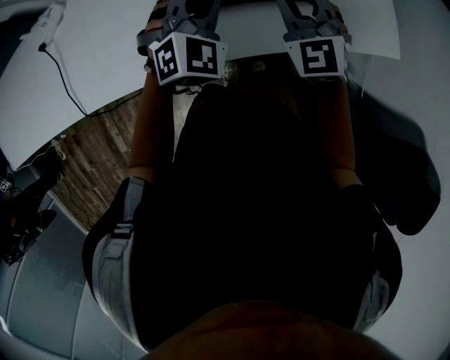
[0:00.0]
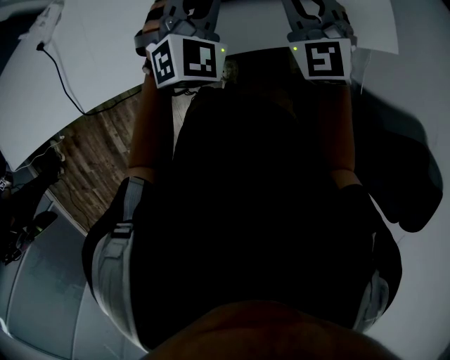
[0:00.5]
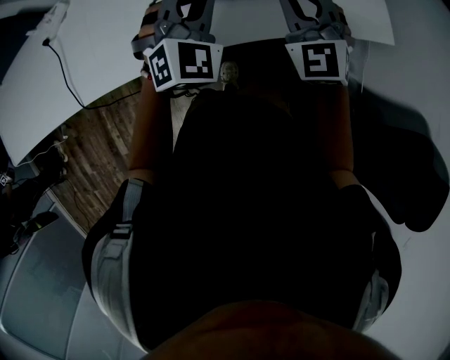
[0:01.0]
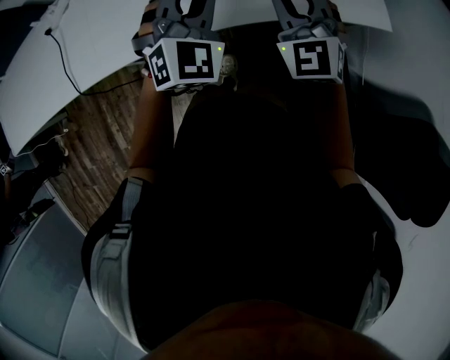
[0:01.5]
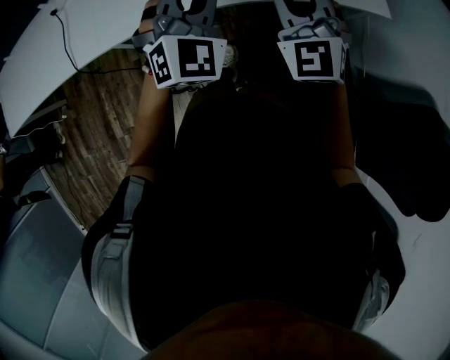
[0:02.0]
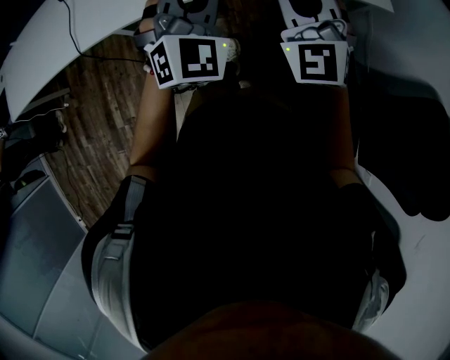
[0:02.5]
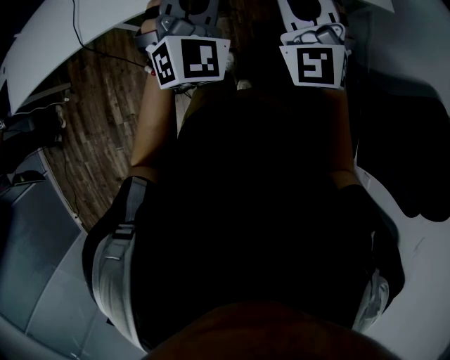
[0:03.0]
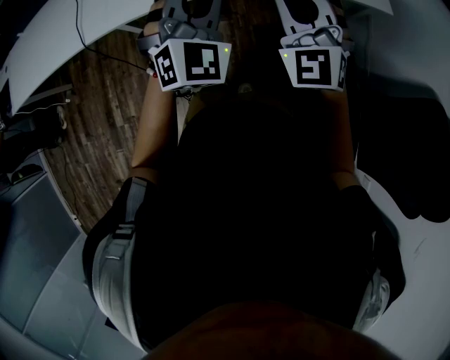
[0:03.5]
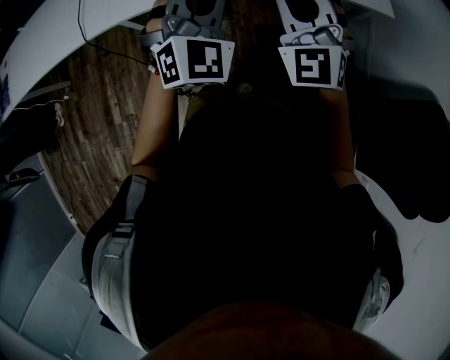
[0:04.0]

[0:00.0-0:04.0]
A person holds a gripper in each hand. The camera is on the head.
0:00.0 to 0:02.0: The grippers both shift backward by about 25 cm.
0:02.0 to 0:04.0: Both grippers move backward, some 10 cm.

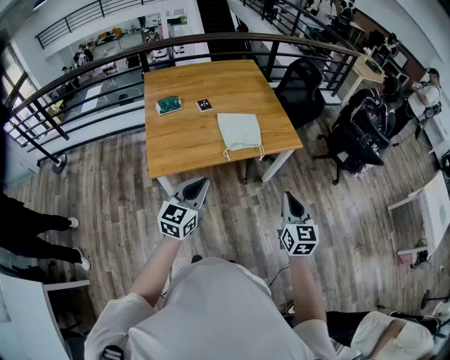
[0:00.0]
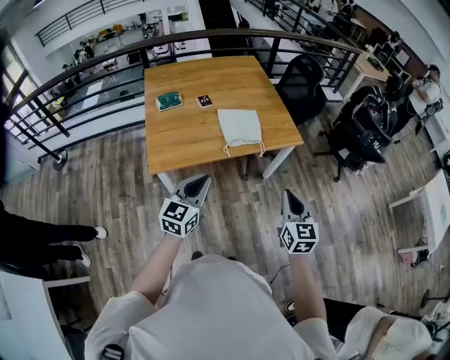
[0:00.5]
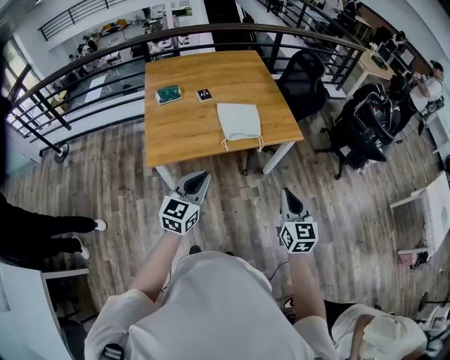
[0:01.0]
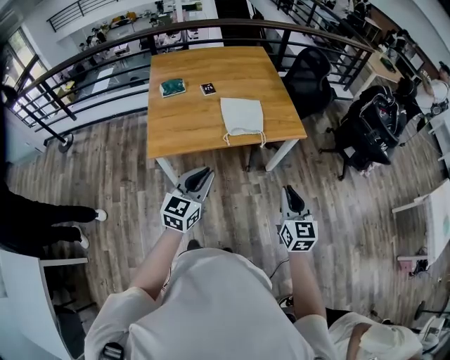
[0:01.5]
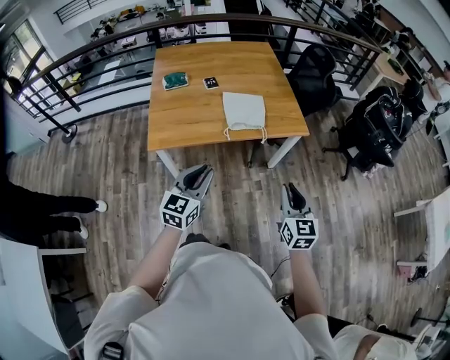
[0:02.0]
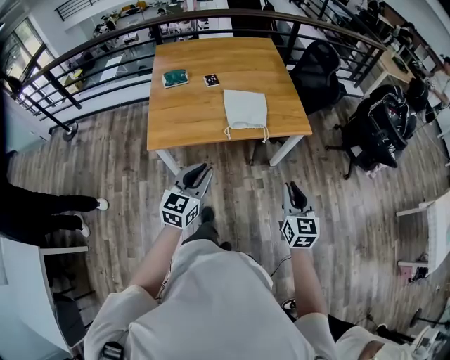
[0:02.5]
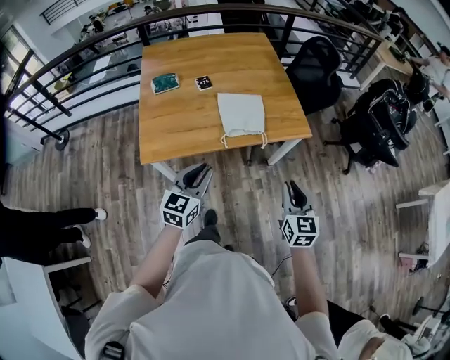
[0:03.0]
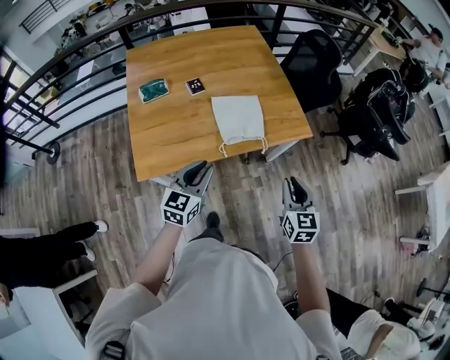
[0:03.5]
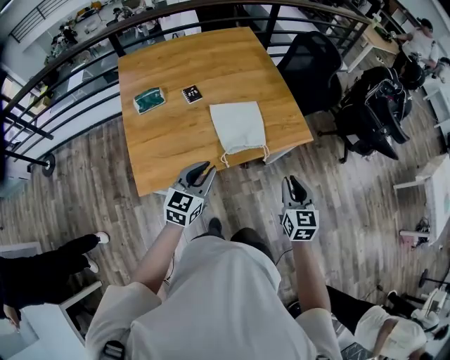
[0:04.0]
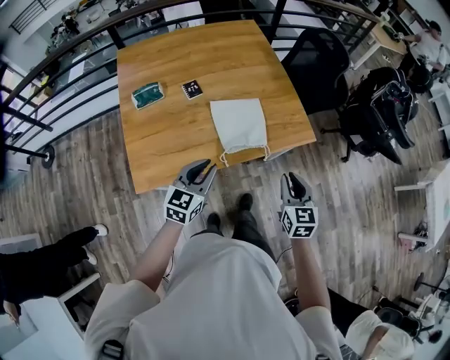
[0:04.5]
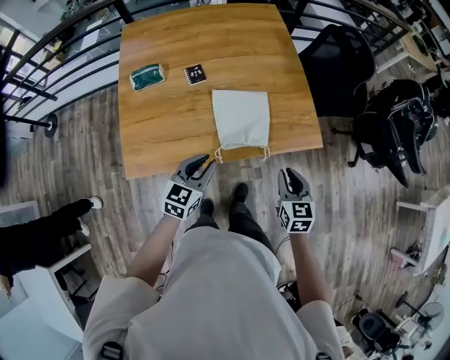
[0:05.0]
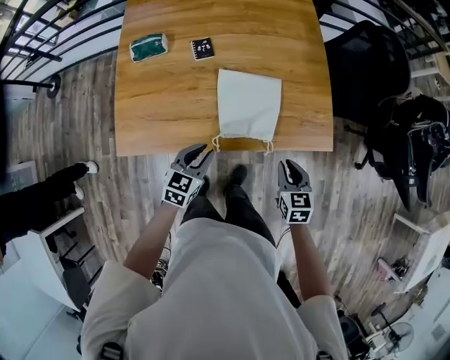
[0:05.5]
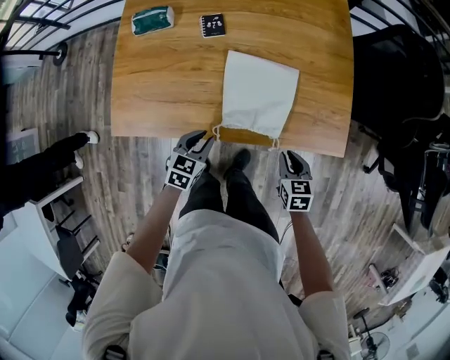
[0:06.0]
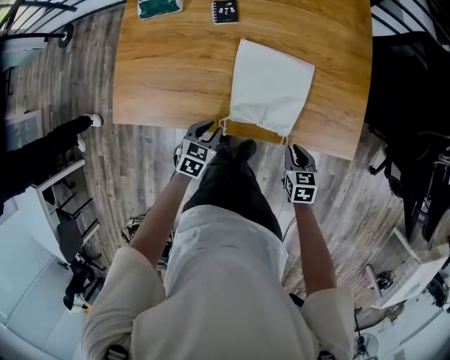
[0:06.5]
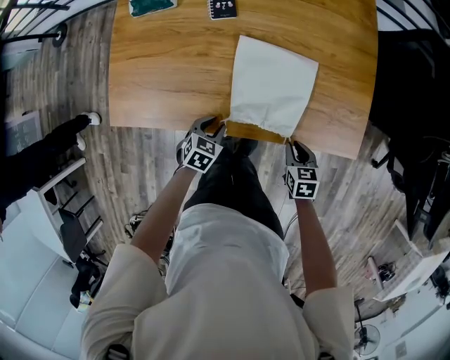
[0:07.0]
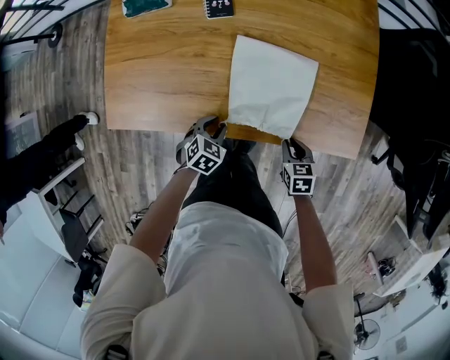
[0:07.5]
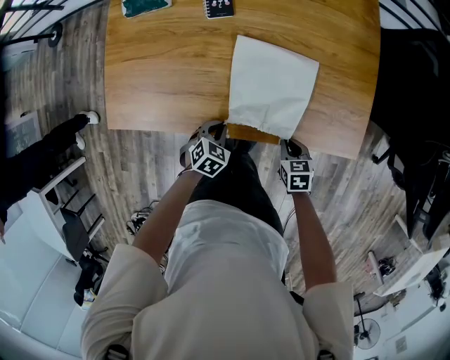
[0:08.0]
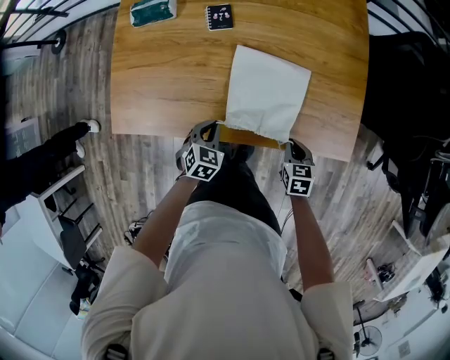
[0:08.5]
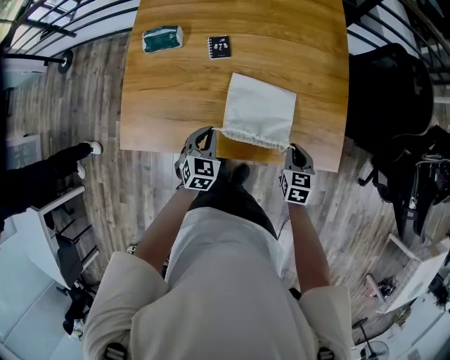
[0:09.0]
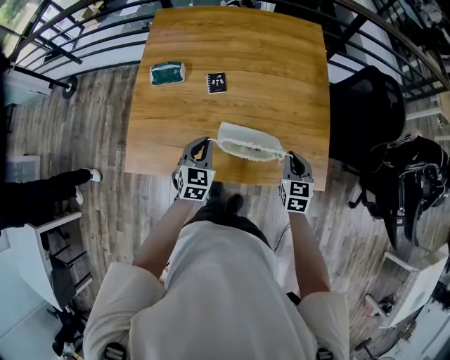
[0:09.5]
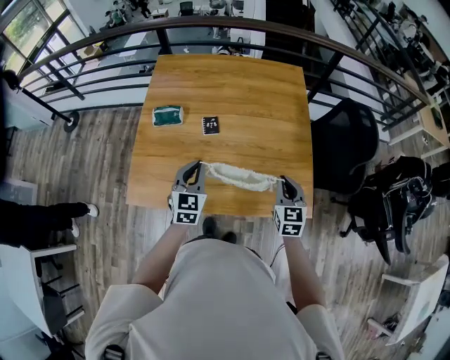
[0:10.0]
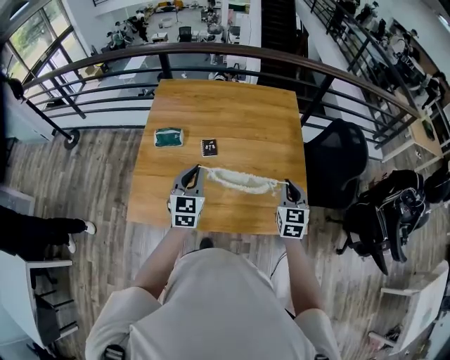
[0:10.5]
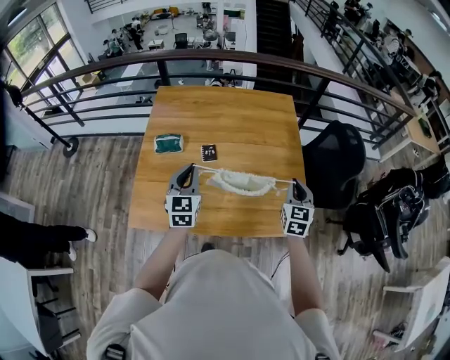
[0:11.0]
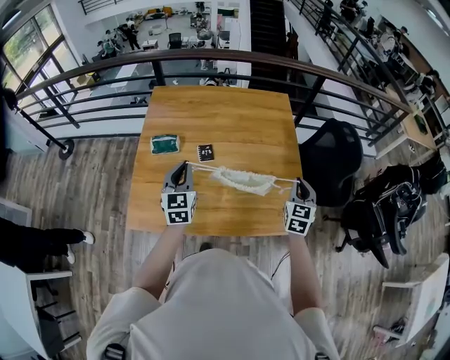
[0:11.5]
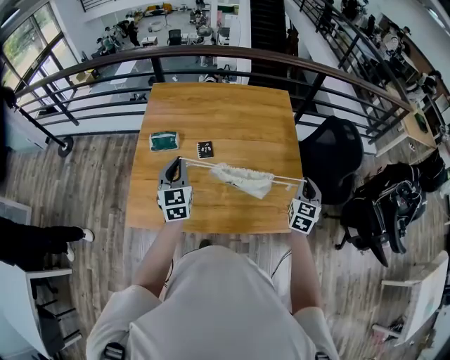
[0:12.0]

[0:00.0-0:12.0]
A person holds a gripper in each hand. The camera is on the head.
0:00.0 to 0:02.0: Both grippers travel together to the right, some 5 cm.
0:02.0 to 0:04.0: Both grippers travel together forward, roughly 25 cm.
0:04.0 to 0:06.0: Both grippers travel together downward, roughly 25 cm. The right gripper turns by about 40 degrees; the left gripper swivels roughly 30 degrees.
0:06.0 to 0:08.0: Both grippers move downward, some 10 cm. The left gripper turns by approximately 20 degrees.
0:08.0 to 0:10.0: Both grippers move upward, approximately 35 cm. The left gripper tips its fingers upward by roughly 40 degrees. Meanwhile the right gripper tilts its fingers about 40 degrees upward.
0:10.0 to 0:12.0: The right gripper is displaced to the right and upward by some 10 cm, and changes its angle by about 20 degrees. Meanwhile the left gripper heads to the left and upward, covering approximately 10 cm.

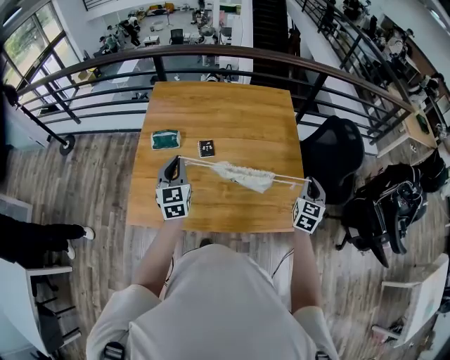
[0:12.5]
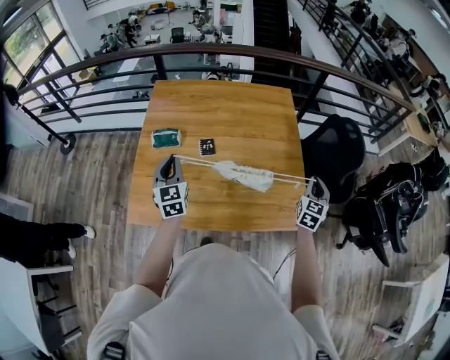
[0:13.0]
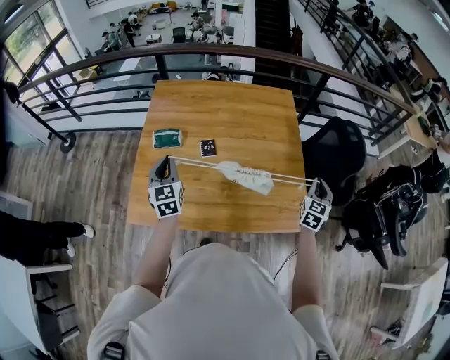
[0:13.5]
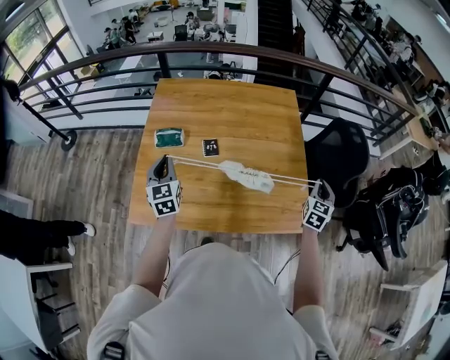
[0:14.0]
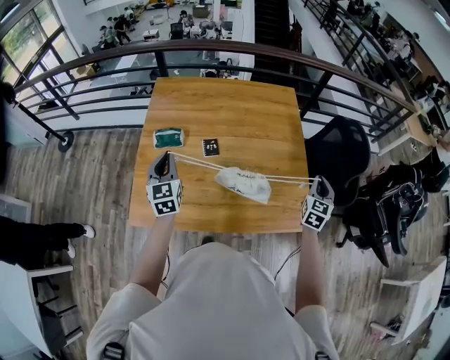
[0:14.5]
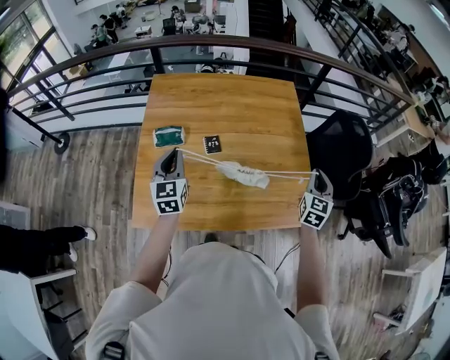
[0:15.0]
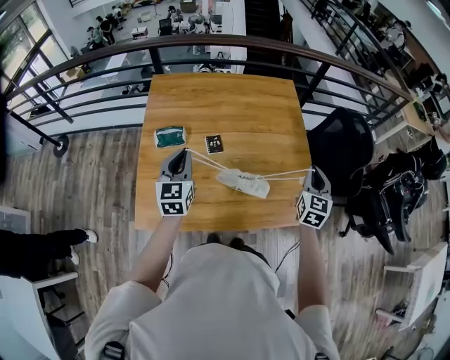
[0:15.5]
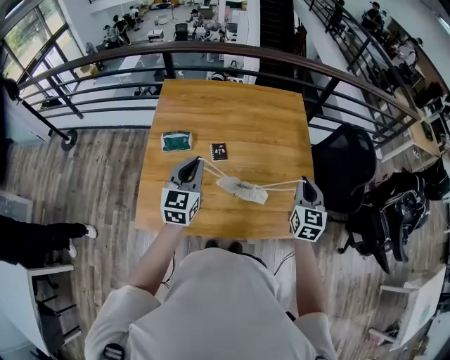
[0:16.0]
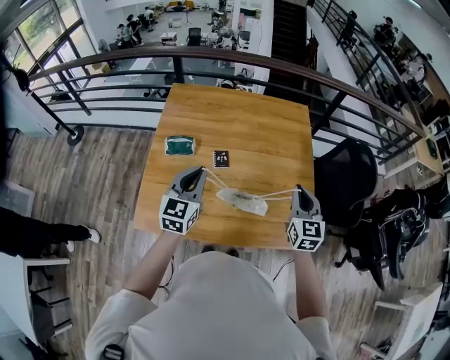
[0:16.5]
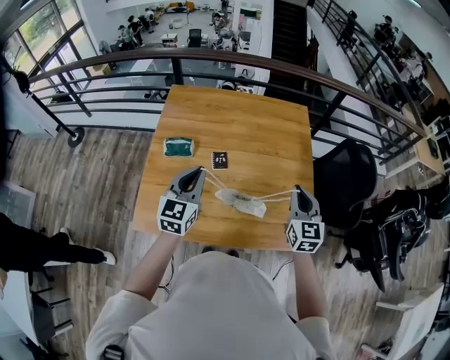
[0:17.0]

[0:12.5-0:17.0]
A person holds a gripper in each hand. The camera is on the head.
0:12.5 to 0:14.5: The left gripper heads to the left, covering roughly 5 cm.
0:14.5 to 0:17.0: The right gripper travels to the left and upward by some 15 cm, and rotates roughly 30 degrees. The left gripper heads to the right, covering some 10 cm, and rotates some 20 degrees.

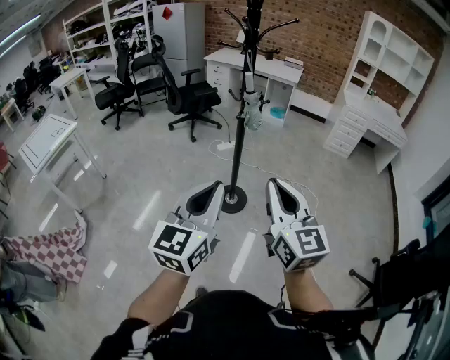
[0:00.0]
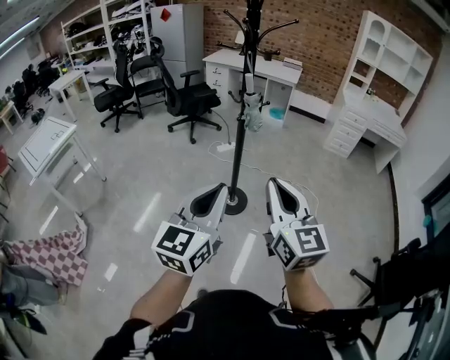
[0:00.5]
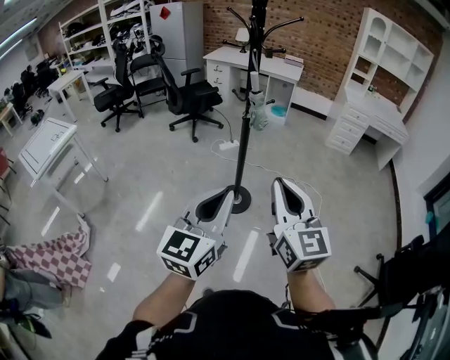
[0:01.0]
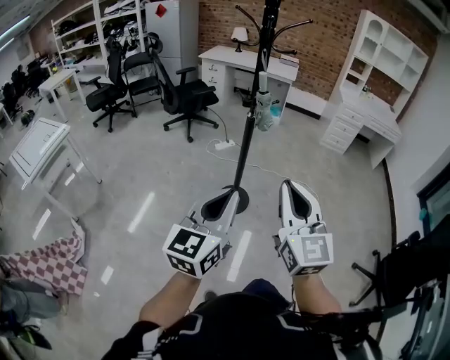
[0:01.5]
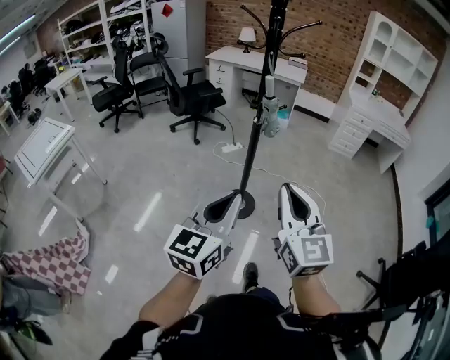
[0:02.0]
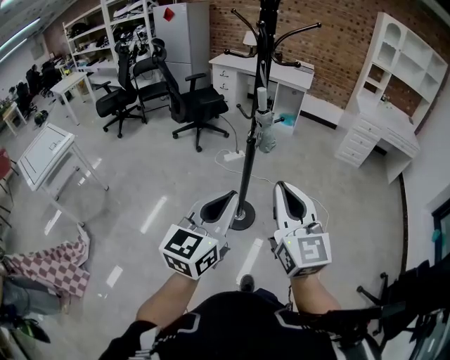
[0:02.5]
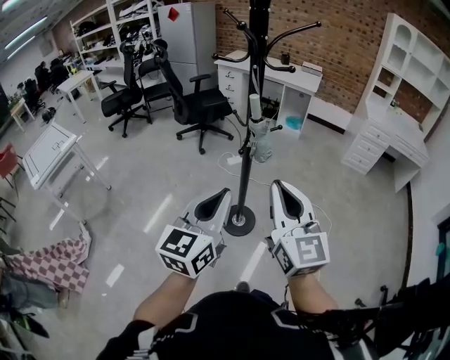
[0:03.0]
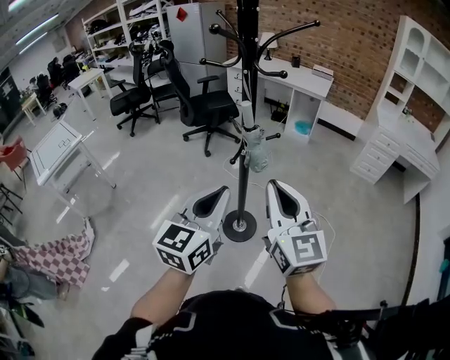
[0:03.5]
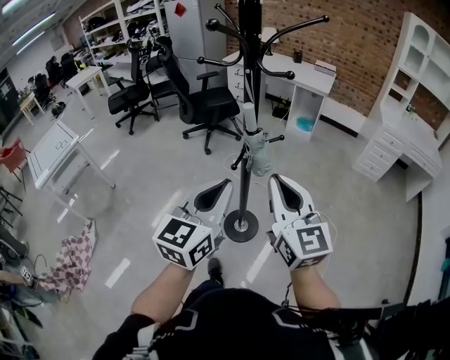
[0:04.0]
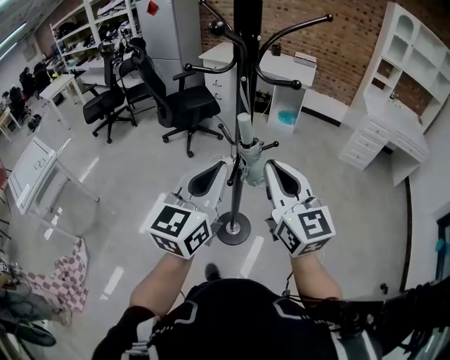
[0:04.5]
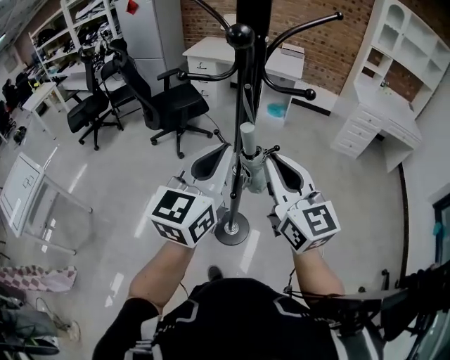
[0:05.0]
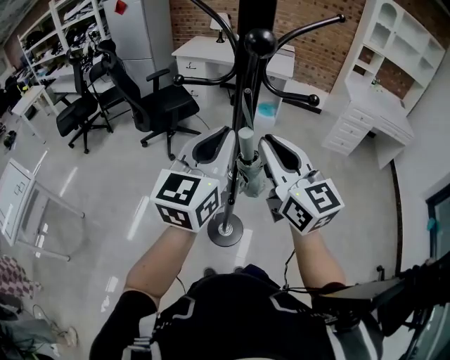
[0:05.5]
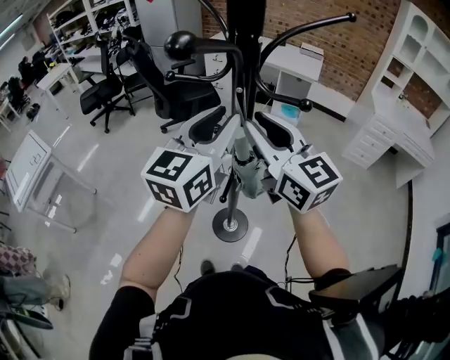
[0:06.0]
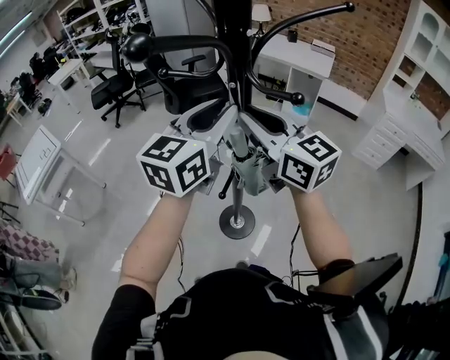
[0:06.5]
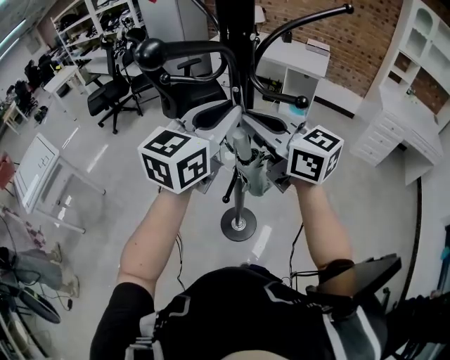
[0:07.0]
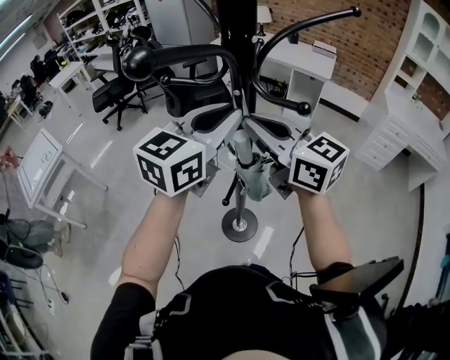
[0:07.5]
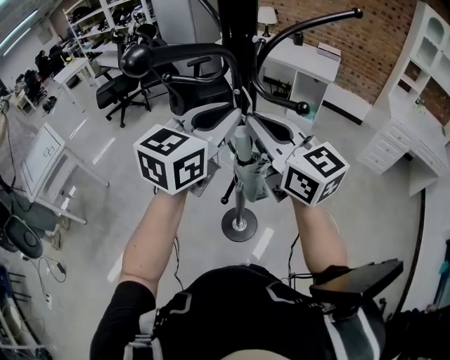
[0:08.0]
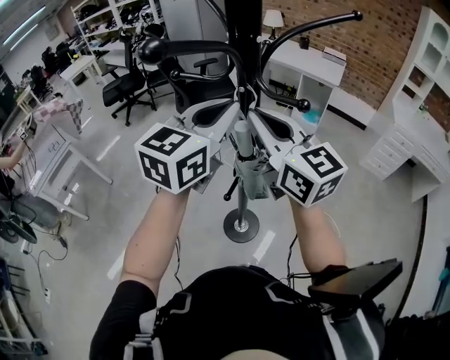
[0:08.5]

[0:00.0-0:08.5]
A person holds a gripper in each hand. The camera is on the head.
0:00.0 to 0:02.0: The left gripper moves forward and to the left, some 10 cm. The right gripper travels to the left and forward by about 10 cm.
0:02.0 to 0:04.0: The right gripper heads forward, covering approximately 30 cm. Meanwhile the left gripper heads forward and to the right, covering approximately 30 cm.
0:04.0 to 0:06.5: Both grippers travel together forward, about 25 cm. The left gripper opens. The right gripper turns by about 20 degrees.
0:06.5 to 0:08.5: The left gripper closes its fingers.
